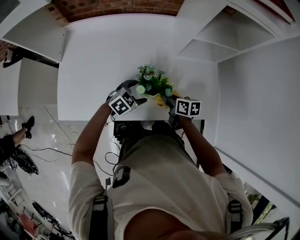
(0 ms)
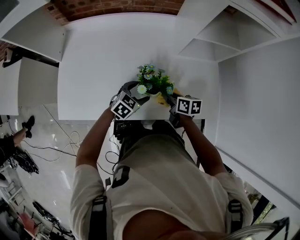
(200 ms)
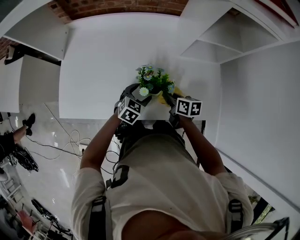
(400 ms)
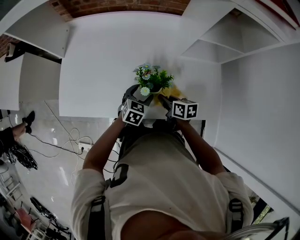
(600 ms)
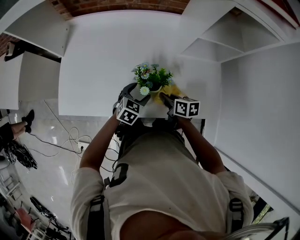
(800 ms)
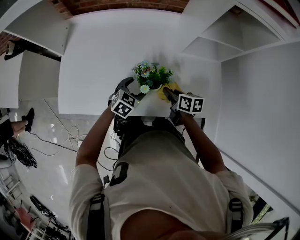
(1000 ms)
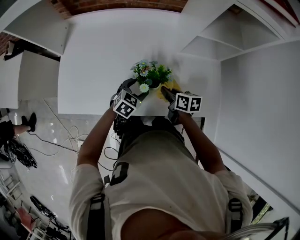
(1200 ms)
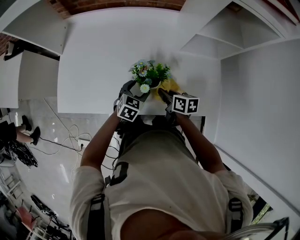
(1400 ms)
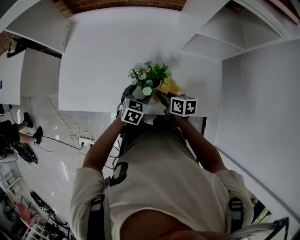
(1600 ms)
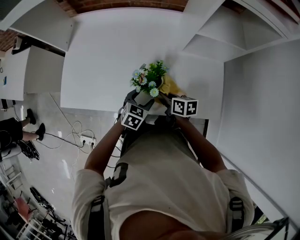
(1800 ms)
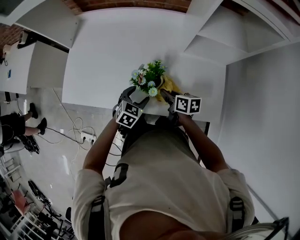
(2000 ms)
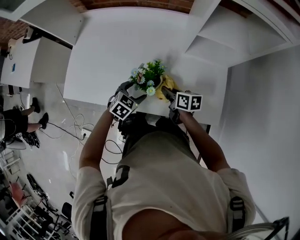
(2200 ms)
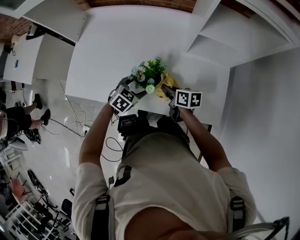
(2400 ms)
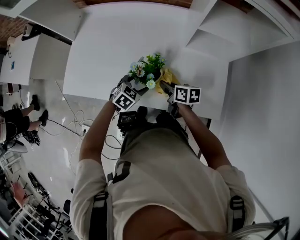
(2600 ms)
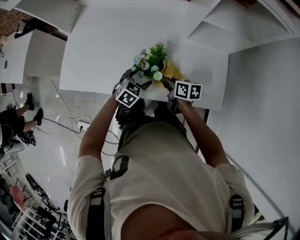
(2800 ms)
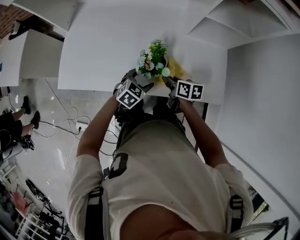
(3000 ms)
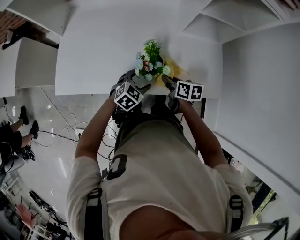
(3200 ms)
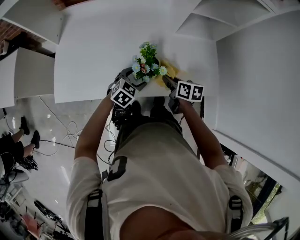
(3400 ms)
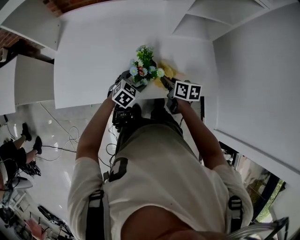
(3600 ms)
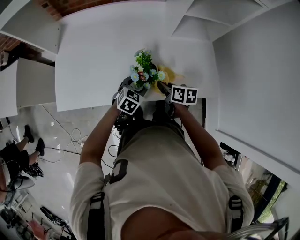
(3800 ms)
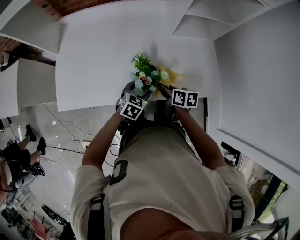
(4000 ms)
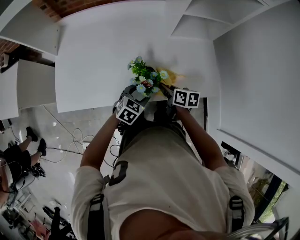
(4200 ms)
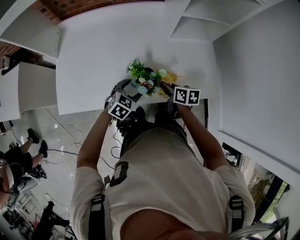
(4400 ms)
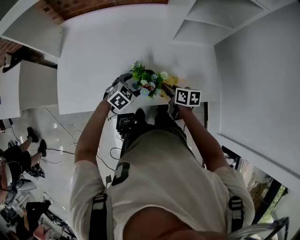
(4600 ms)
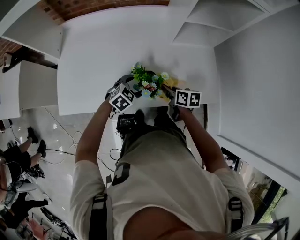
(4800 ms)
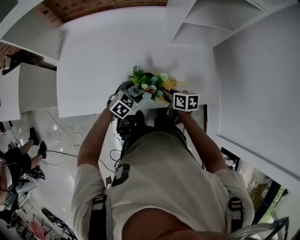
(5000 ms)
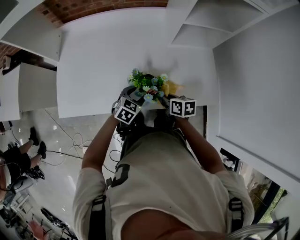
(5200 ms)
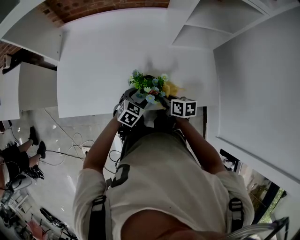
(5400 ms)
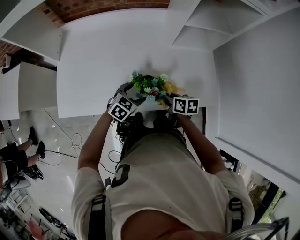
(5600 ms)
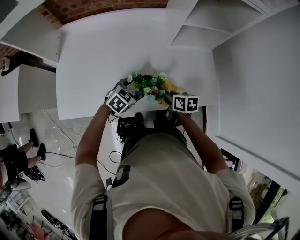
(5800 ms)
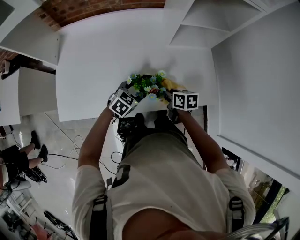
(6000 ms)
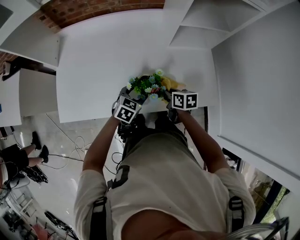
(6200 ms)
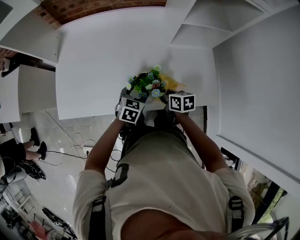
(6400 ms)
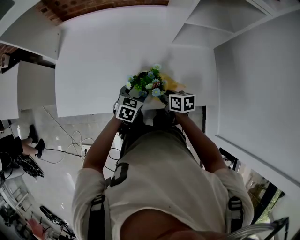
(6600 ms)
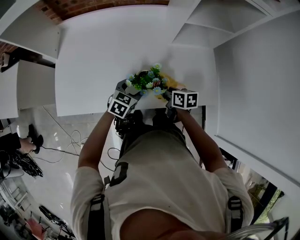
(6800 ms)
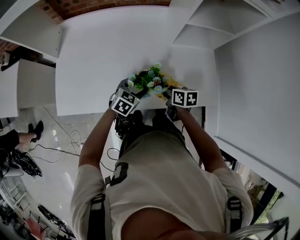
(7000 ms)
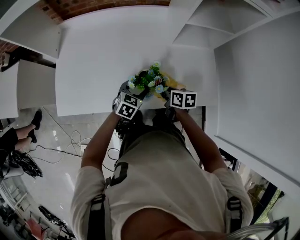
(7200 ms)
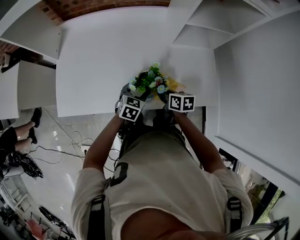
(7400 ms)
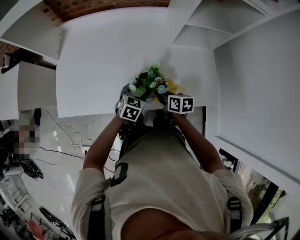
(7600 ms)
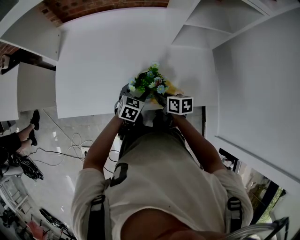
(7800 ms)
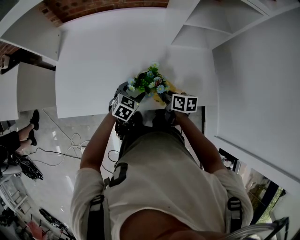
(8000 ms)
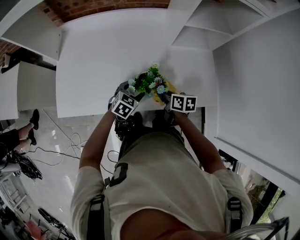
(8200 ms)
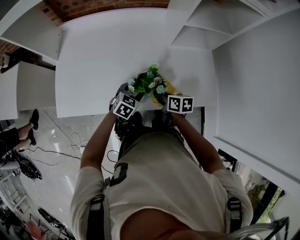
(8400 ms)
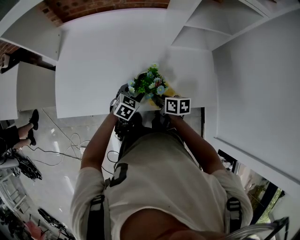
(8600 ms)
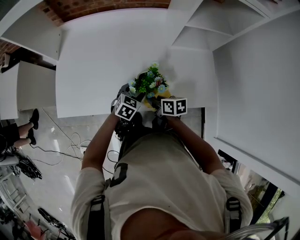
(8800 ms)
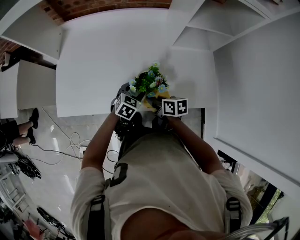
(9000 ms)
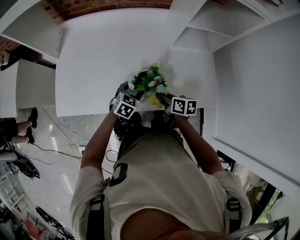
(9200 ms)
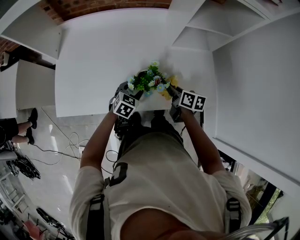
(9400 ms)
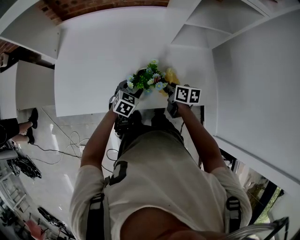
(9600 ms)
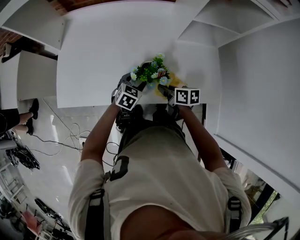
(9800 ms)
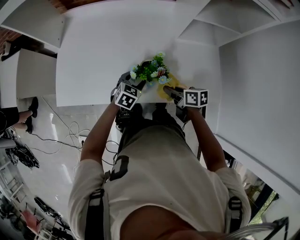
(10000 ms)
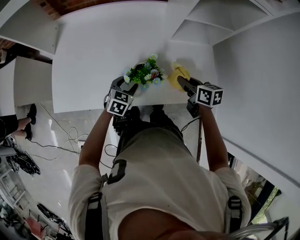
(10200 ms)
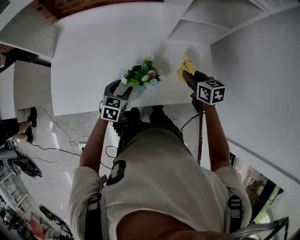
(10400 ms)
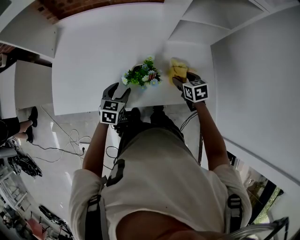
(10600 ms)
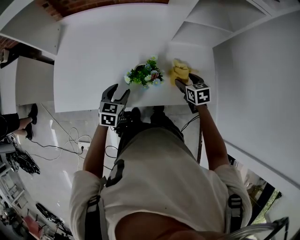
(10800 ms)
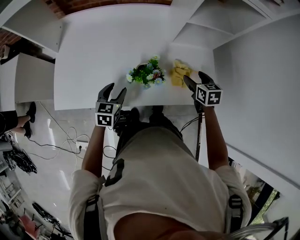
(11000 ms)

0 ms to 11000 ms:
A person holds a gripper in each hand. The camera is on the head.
0 ms to 1600 ms: The left gripper swivels about 30 degrees.
1600 ms to 3200 ms: The left gripper is displaced backward by approximately 5 cm, and turns by roughly 20 degrees.
3200 ms to 6200 ms: The grippers make only small movements.
6200 ms to 7800 ms: The grippers make only small movements.
7800 ms to 9400 ms: The right gripper goes some 5 cm to the right.
9400 ms to 11000 ms: The right gripper shifts about 10 cm to the right, turns by approximately 40 degrees, and opens up. Meanwhile the left gripper travels to the left and upward by about 10 cm, and turns by roughly 20 degrees.

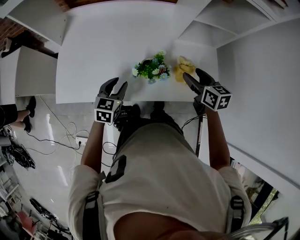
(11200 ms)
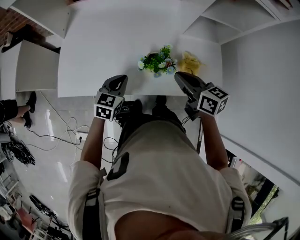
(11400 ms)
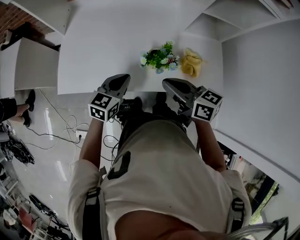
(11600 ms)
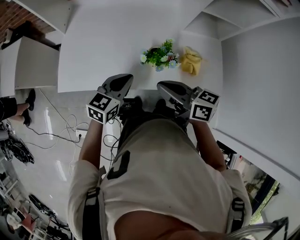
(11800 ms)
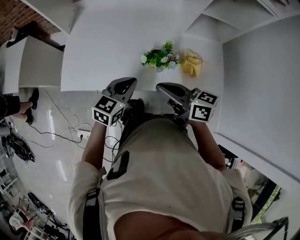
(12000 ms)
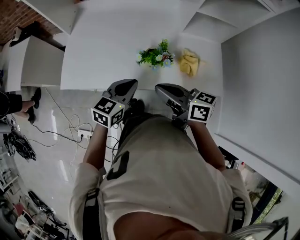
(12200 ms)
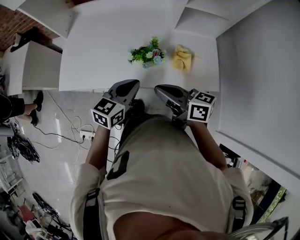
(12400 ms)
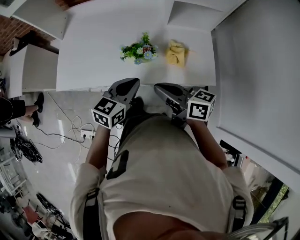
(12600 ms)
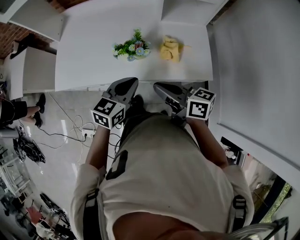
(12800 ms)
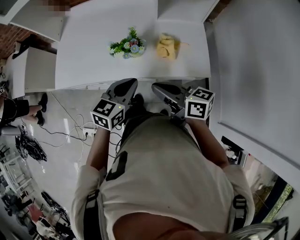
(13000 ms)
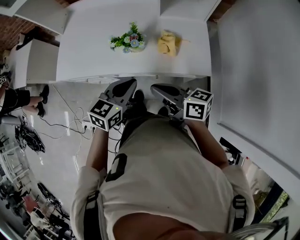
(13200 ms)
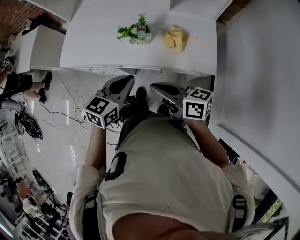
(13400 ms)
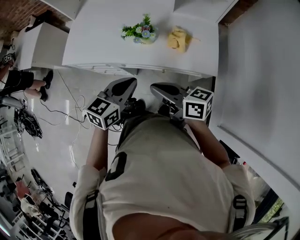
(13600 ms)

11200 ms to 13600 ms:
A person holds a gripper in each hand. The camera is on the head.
11200 ms to 12400 ms: The right gripper travels backward, to the left and upward by roughly 20 cm, rotates roughly 40 degrees, and closes its fingers, while the left gripper shifts approximately 20 cm backward, to the right and upward, and closes.
12400 ms to 13600 ms: The two grippers go approximately 10 cm backward.

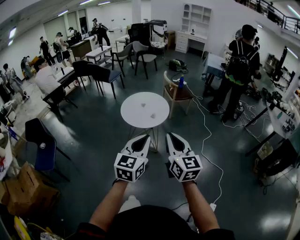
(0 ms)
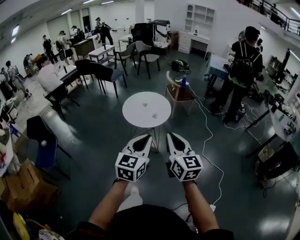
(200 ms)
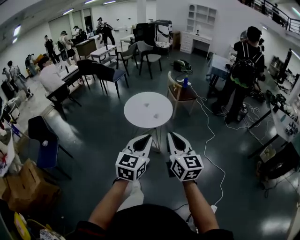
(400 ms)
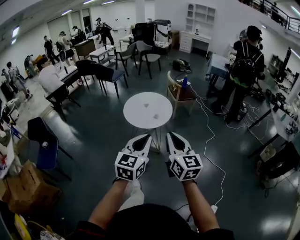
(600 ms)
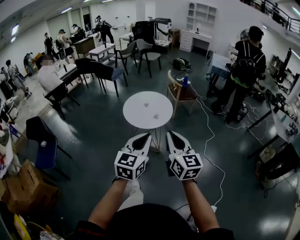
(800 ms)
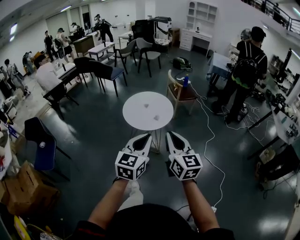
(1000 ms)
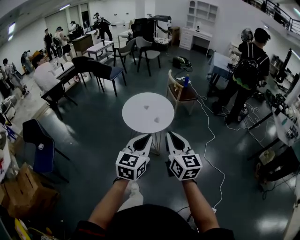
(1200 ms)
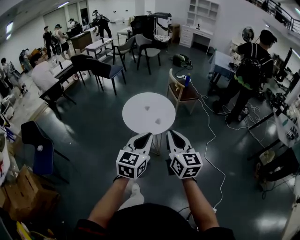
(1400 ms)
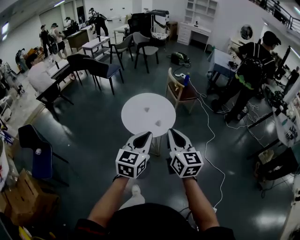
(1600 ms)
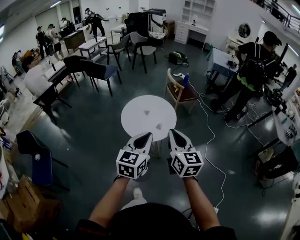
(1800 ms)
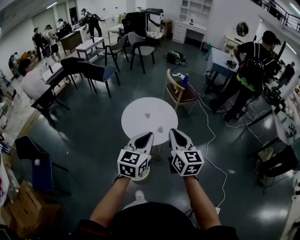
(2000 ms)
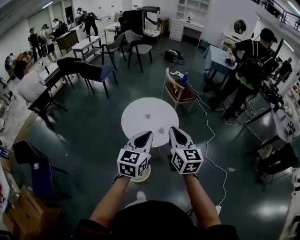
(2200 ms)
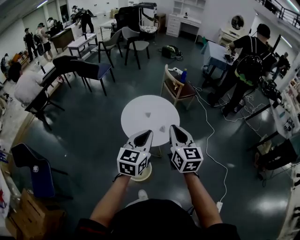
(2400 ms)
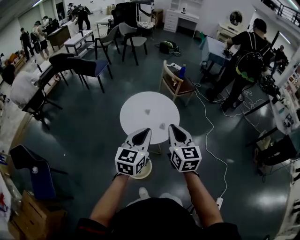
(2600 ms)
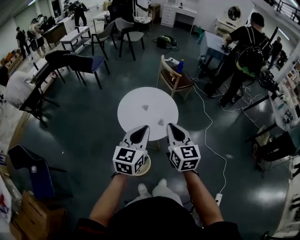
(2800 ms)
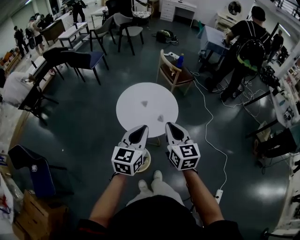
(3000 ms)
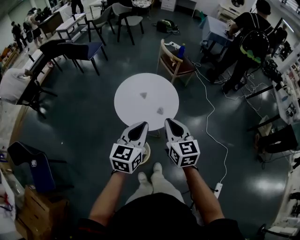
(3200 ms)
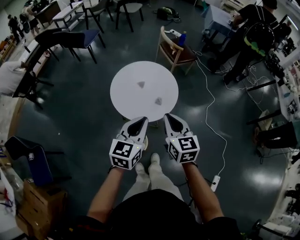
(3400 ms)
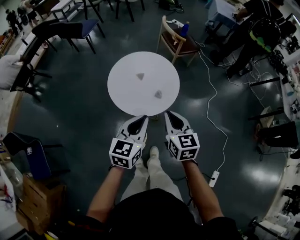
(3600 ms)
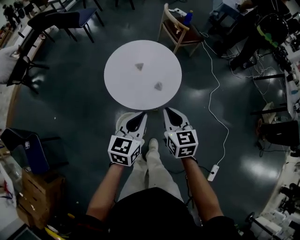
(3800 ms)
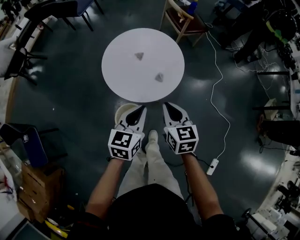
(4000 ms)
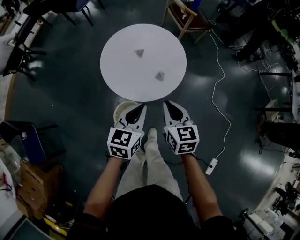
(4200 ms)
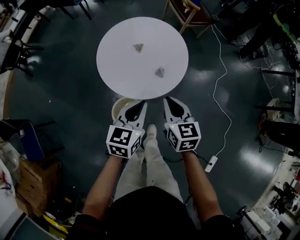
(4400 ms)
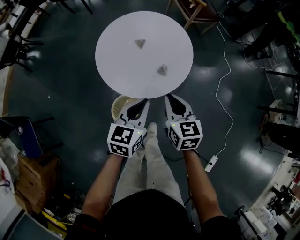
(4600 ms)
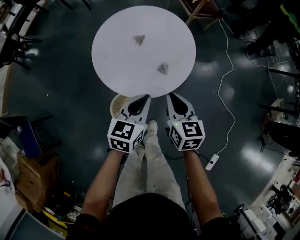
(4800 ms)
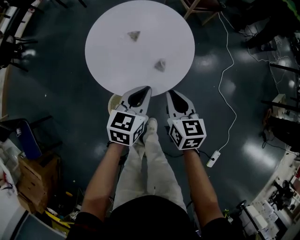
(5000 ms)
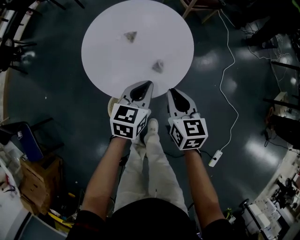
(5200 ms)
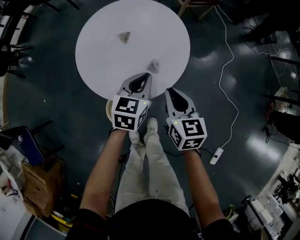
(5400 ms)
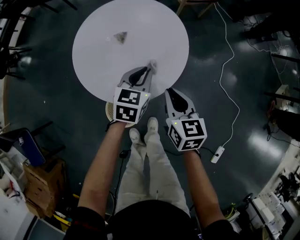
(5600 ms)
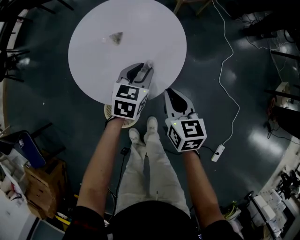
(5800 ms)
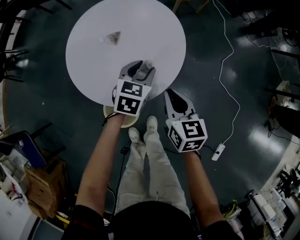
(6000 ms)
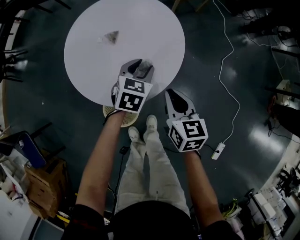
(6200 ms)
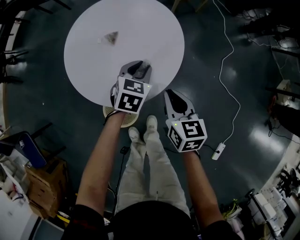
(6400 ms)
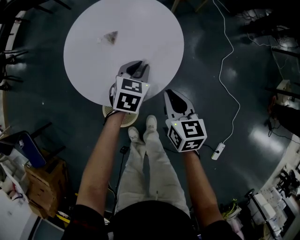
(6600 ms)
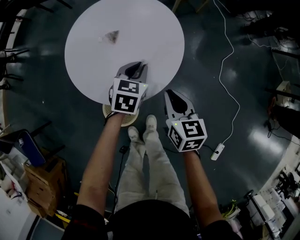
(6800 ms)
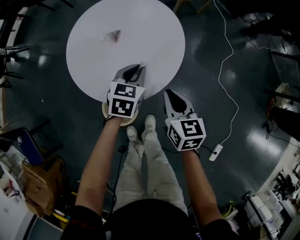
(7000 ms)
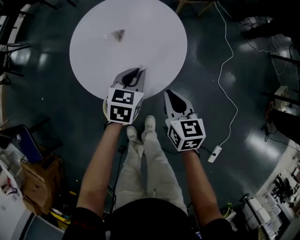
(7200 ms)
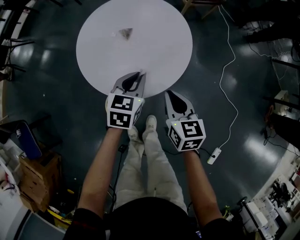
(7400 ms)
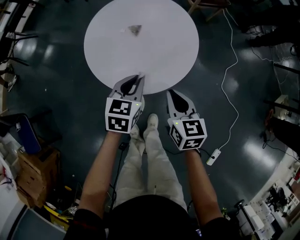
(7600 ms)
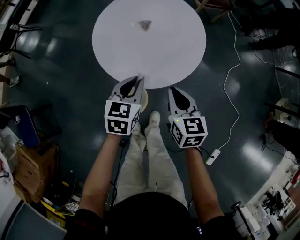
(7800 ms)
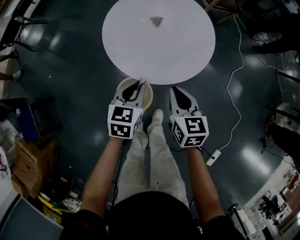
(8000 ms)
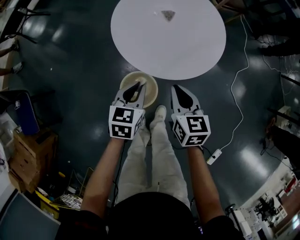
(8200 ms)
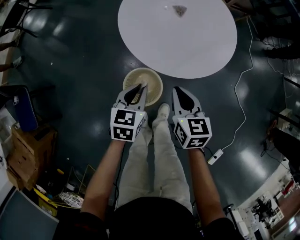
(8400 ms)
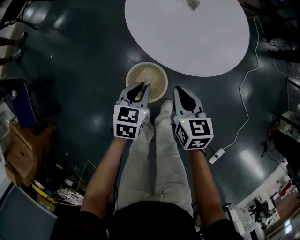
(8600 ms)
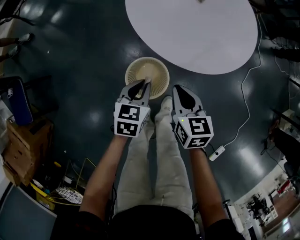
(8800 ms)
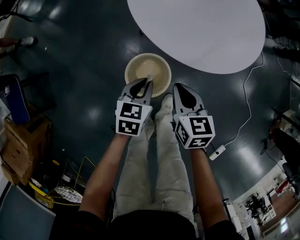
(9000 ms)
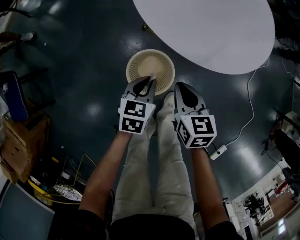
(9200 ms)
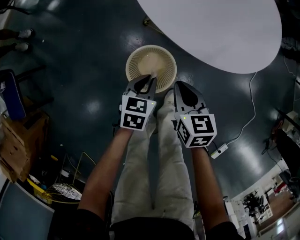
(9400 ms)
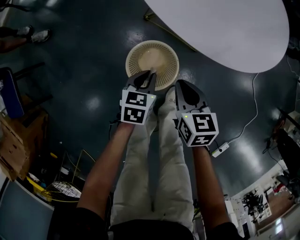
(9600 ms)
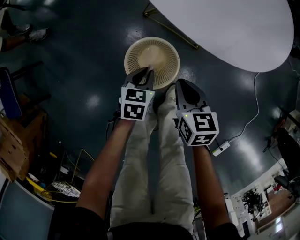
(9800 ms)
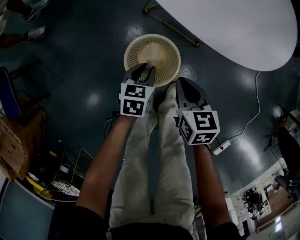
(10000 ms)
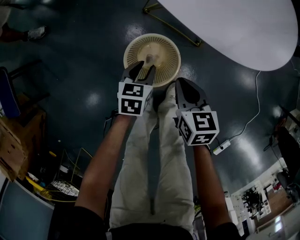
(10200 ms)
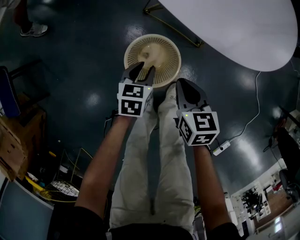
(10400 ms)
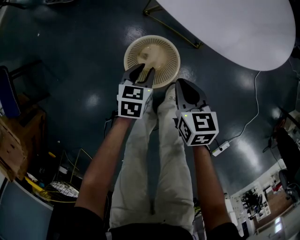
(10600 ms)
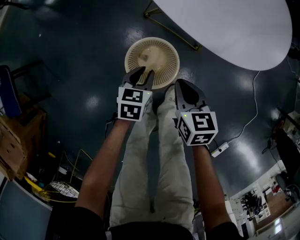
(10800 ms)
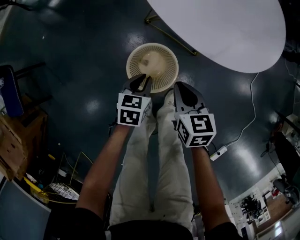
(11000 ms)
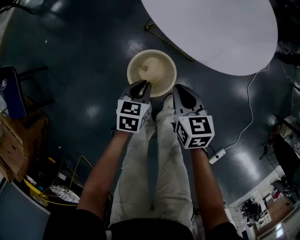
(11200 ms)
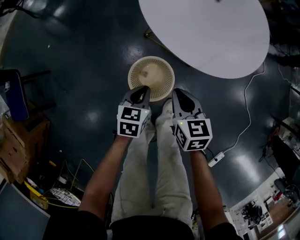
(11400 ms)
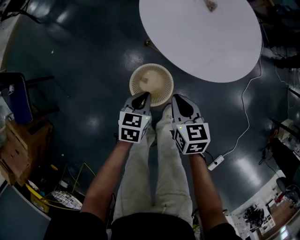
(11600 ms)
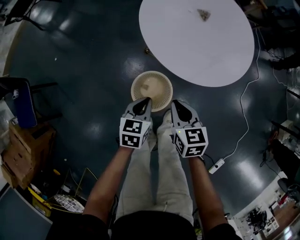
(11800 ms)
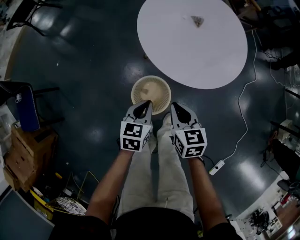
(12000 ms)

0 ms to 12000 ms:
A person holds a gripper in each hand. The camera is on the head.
0 ms to 1600 ms: Both grippers move forward, about 20 cm.
1600 ms to 3000 ms: The grippers both shift forward, to the left and downward by approximately 20 cm.
3000 ms to 4400 ms: The left gripper moves downward and forward, approximately 25 cm, while the right gripper shifts approximately 25 cm downward.
4400 ms to 6000 ms: The left gripper goes approximately 25 cm downward and forward, and opens up. Meanwhile the right gripper shifts approximately 15 cm downward, forward and to the right.
6000 ms to 7600 ms: The left gripper moves backward, to the left and upward, about 15 cm, and closes its fingers, while the right gripper shifts by some 5 cm.
7600 ms to 9000 ms: The left gripper moves downward, to the left and backward, approximately 30 cm. Meanwhile the right gripper is displaced to the left, downward and backward by about 25 cm.
9000 ms to 10400 ms: Both grippers move downward, roughly 15 cm. The left gripper opens its fingers.
10400 ms to 12000 ms: The two grippers go roughly 25 cm upward. The left gripper closes up.
